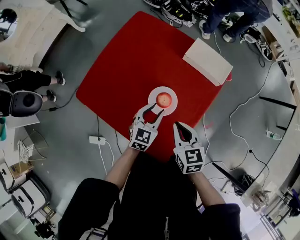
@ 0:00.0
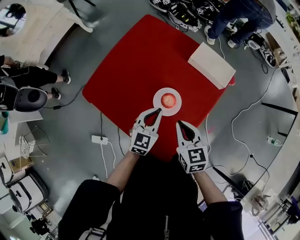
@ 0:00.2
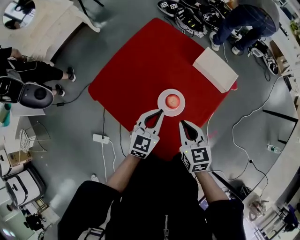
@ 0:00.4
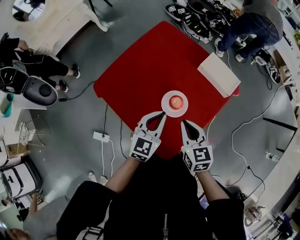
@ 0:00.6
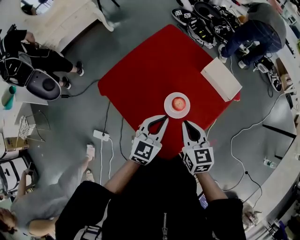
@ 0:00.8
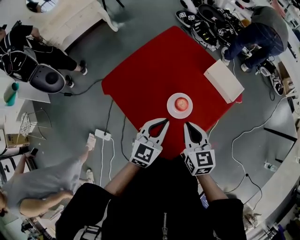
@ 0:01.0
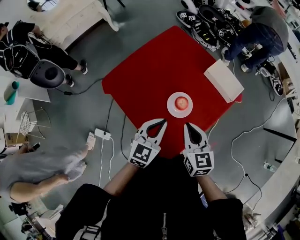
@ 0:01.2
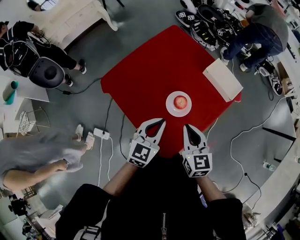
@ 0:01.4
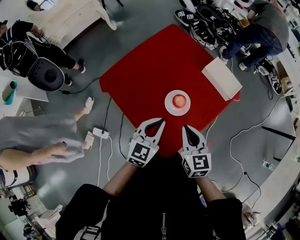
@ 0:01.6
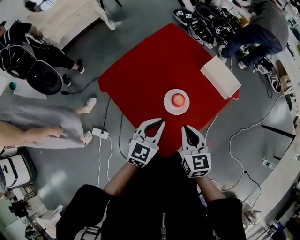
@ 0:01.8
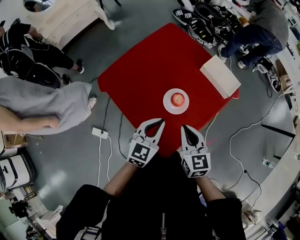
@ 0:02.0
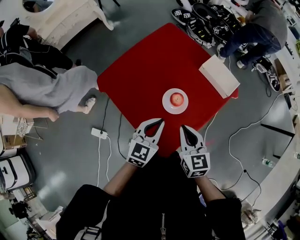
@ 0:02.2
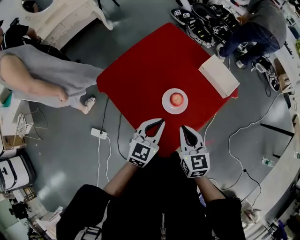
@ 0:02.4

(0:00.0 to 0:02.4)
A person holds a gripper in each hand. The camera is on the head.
0:00.0 - 0:01.2: The left gripper is displaced upward and backward by some 15 cm, and closes up. Meanwhile the right gripper goes some 10 cm upward.
0:01.2 - 0:02.4: There are only small adjustments of the grippers.

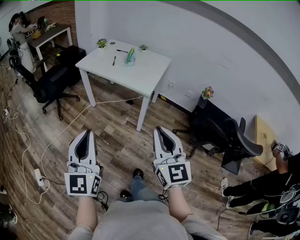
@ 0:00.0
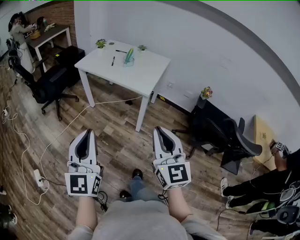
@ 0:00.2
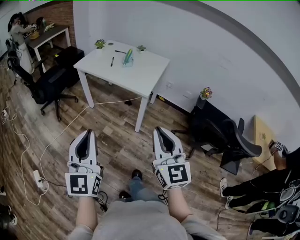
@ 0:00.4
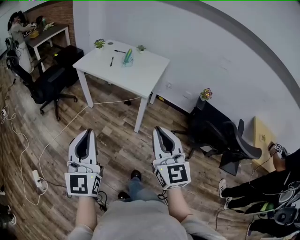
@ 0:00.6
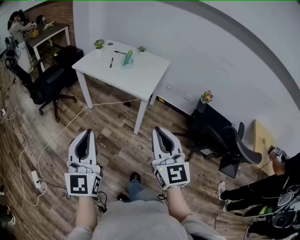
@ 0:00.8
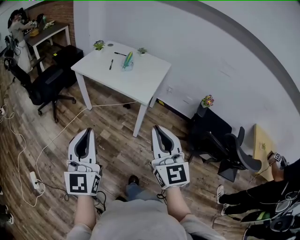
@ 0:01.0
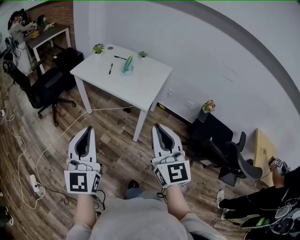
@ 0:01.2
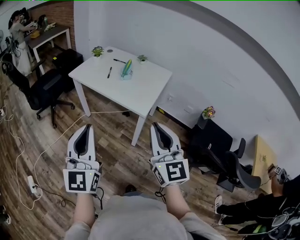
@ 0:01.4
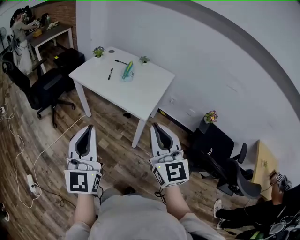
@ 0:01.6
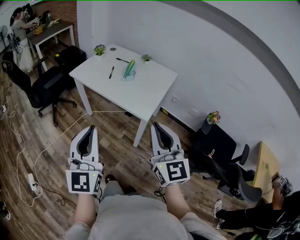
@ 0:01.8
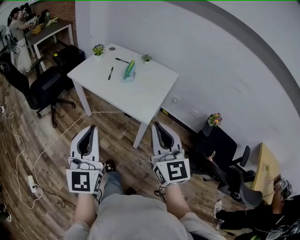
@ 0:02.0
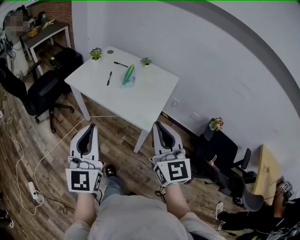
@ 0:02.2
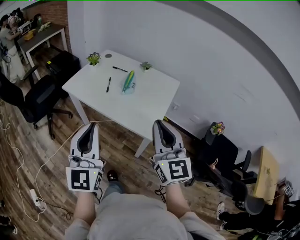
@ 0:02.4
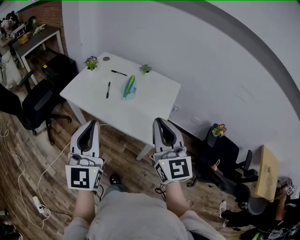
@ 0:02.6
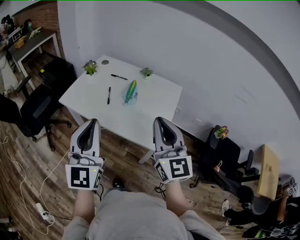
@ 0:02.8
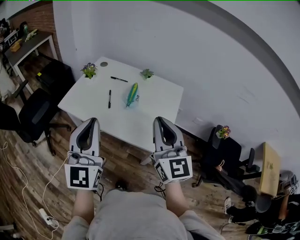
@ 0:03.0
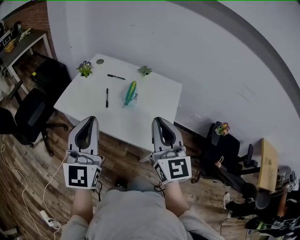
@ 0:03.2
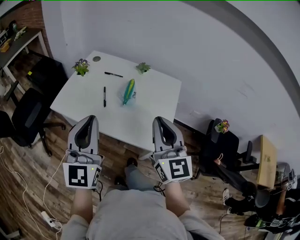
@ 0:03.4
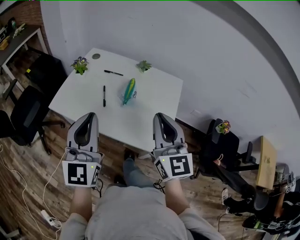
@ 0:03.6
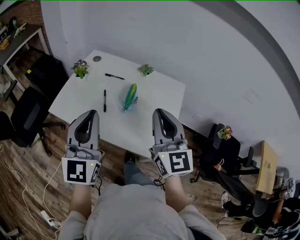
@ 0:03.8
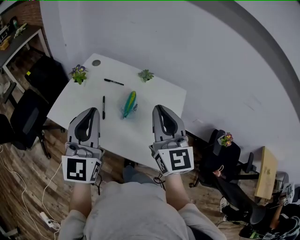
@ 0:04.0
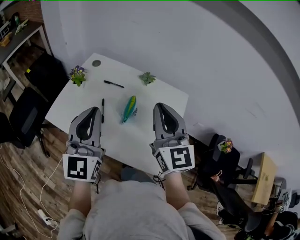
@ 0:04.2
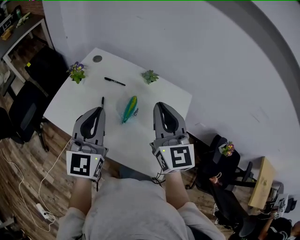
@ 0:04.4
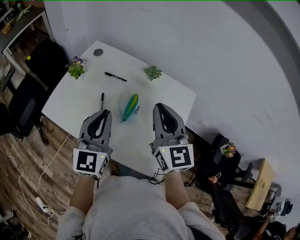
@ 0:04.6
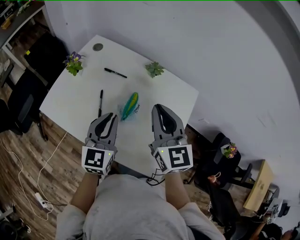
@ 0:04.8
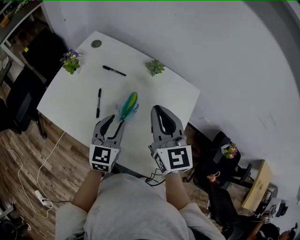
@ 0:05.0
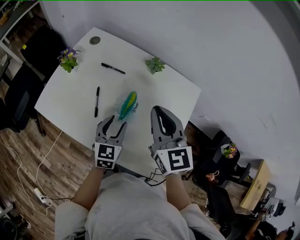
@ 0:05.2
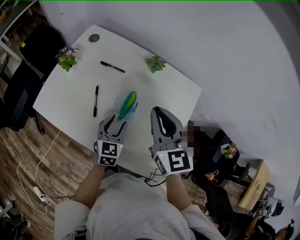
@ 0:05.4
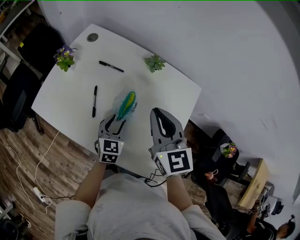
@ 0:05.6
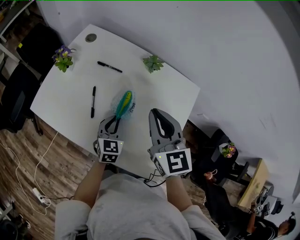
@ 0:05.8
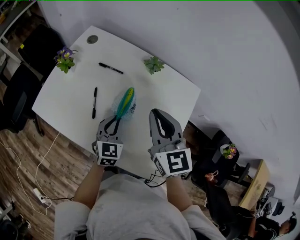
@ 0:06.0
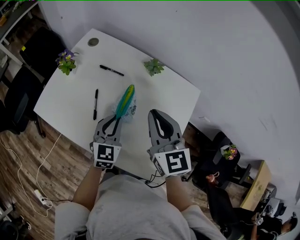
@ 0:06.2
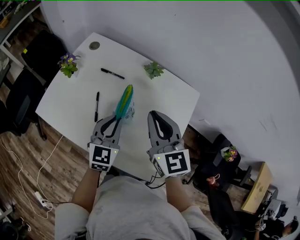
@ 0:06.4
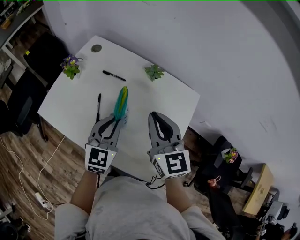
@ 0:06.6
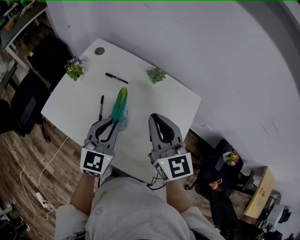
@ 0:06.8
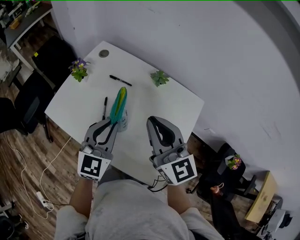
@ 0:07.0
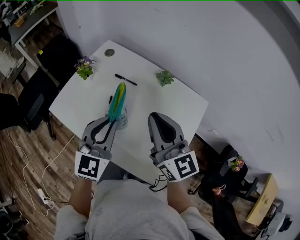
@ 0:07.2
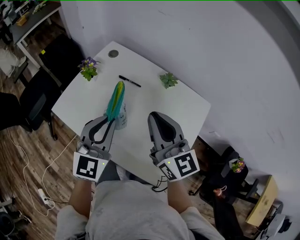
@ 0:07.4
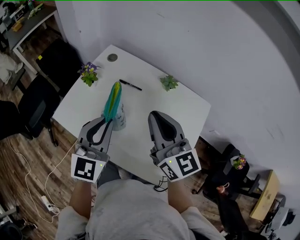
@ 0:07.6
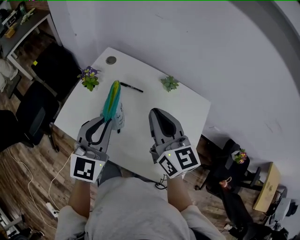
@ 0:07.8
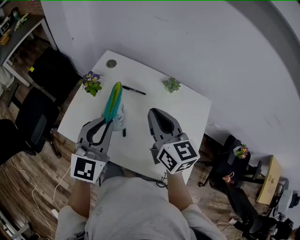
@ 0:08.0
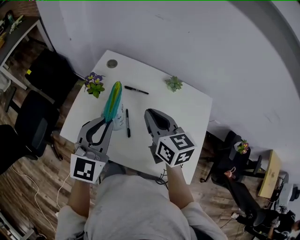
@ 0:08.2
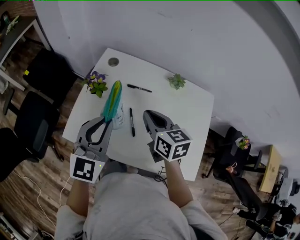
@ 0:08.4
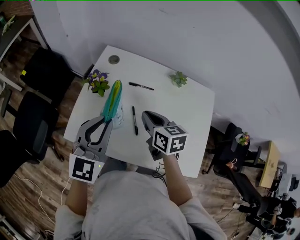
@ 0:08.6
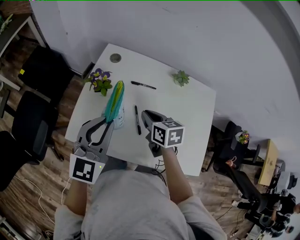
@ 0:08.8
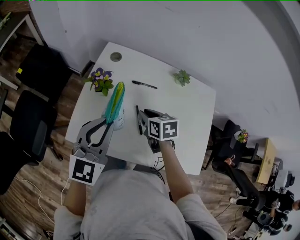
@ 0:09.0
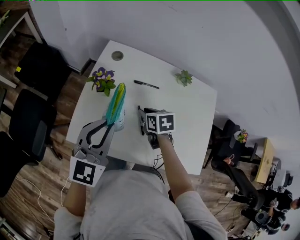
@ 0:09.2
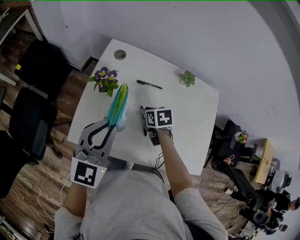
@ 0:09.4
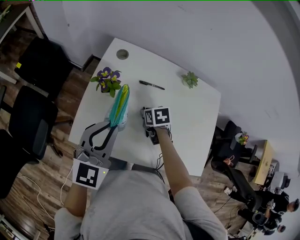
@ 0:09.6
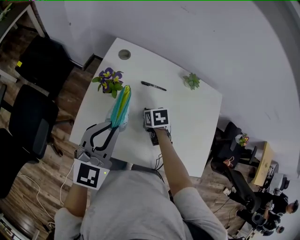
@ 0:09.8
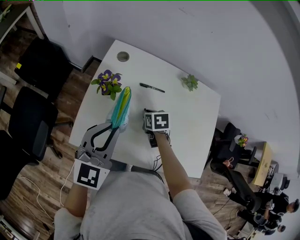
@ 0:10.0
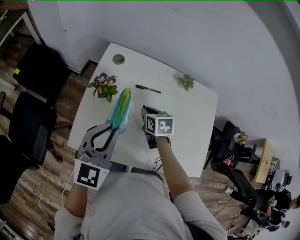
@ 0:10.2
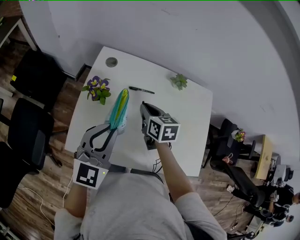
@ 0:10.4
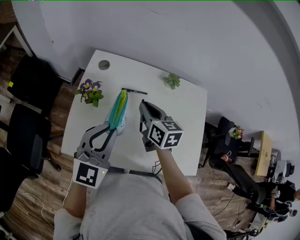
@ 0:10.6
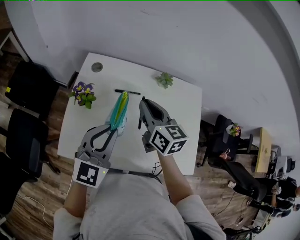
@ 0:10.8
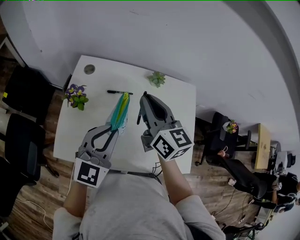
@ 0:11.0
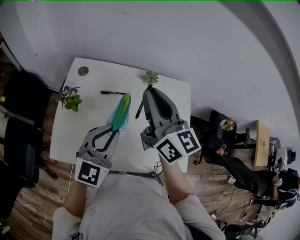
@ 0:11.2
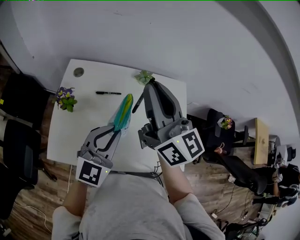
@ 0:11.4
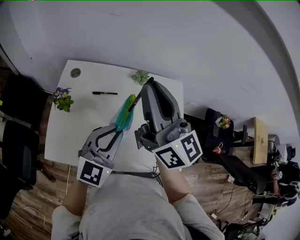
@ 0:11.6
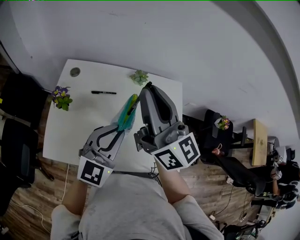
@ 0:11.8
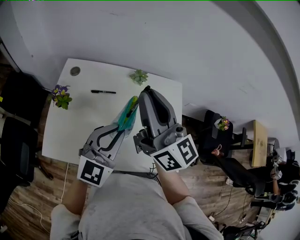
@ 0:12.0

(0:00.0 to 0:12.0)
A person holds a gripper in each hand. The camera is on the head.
0:00.0 - 0:01.6: The grippers both shift forward by some 20 cm.
0:01.6 - 0:03.0: The grippers both shift forward by approximately 30 cm.
0:03.0 - 0:04.4: The two grippers go approximately 25 cm forward.
0:04.4 - 0:06.0: The left gripper travels downward by approximately 25 cm, points its fingers about 30 degrees further downward, and opens, then closes again; the right gripper moves downward and forward, approximately 10 cm.
0:06.0 - 0:07.6: The left gripper goes approximately 25 cm upward and to the left, and rotates about 20 degrees. The right gripper travels to the left and upward by about 10 cm, and rotates approximately 20 degrees.
0:07.6 - 0:09.0: The right gripper heads downward and to the left, covering about 25 cm, and tilts its fingers approximately 50 degrees downward. Meanwhile the left gripper goes some 15 cm to the left.
0:09.0 - 0:10.4: The right gripper heads forward, covering approximately 5 cm, and goes downward and returns, approximately 10 cm each way.
0:10.4 - 0:12.0: The right gripper shifts roughly 30 cm upward and to the right, and points its fingers about 50 degrees further upward; the left gripper heads to the right, covering roughly 20 cm.

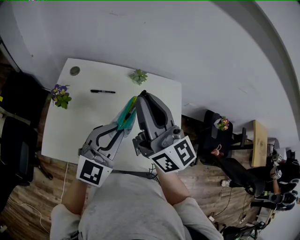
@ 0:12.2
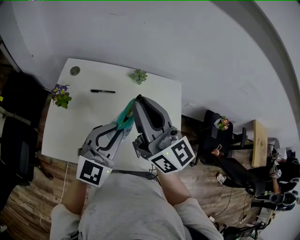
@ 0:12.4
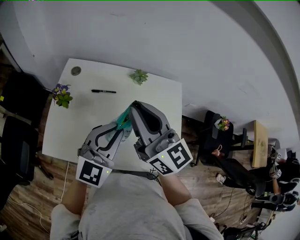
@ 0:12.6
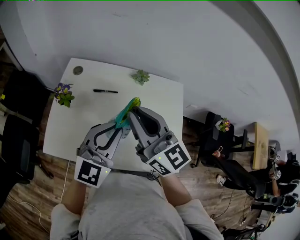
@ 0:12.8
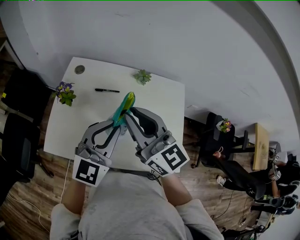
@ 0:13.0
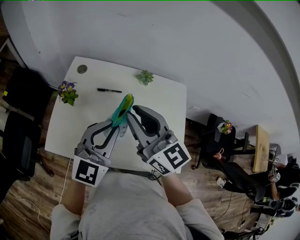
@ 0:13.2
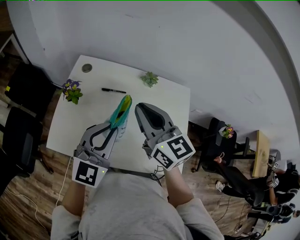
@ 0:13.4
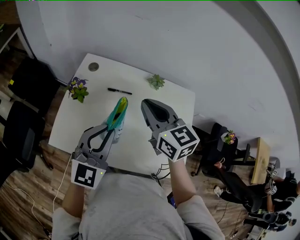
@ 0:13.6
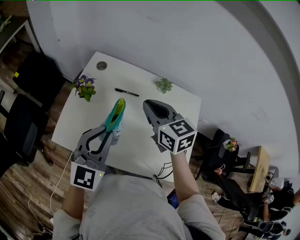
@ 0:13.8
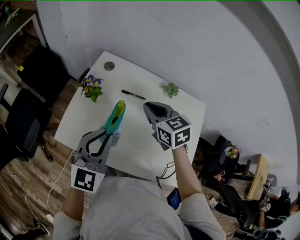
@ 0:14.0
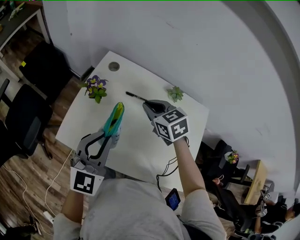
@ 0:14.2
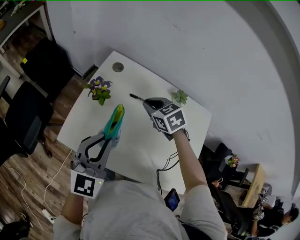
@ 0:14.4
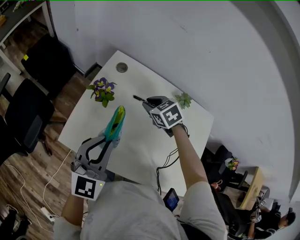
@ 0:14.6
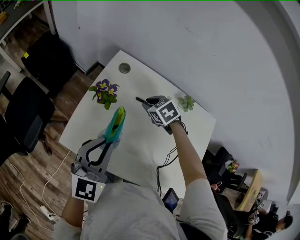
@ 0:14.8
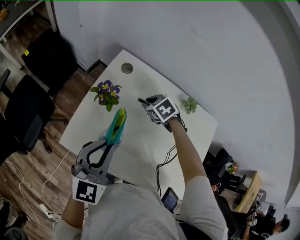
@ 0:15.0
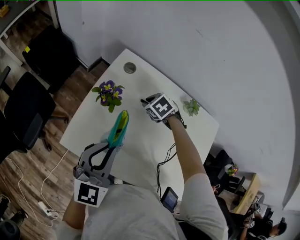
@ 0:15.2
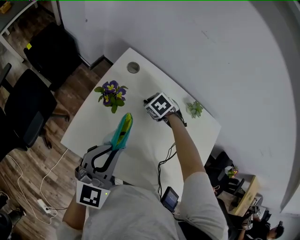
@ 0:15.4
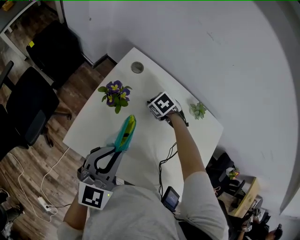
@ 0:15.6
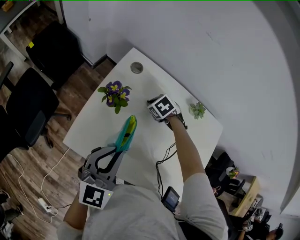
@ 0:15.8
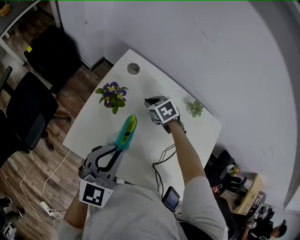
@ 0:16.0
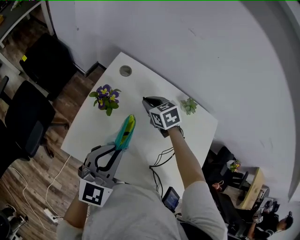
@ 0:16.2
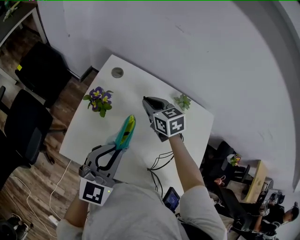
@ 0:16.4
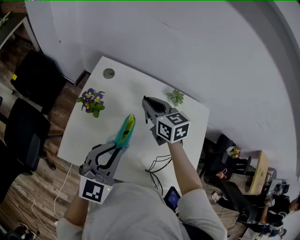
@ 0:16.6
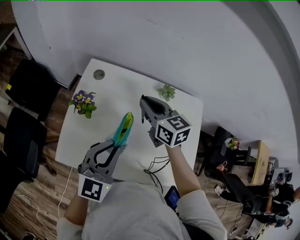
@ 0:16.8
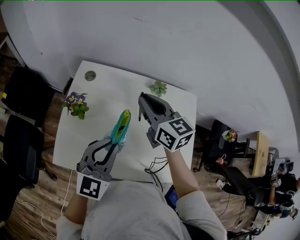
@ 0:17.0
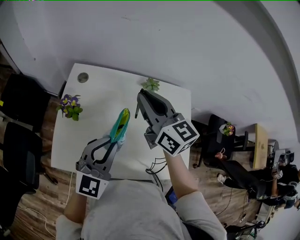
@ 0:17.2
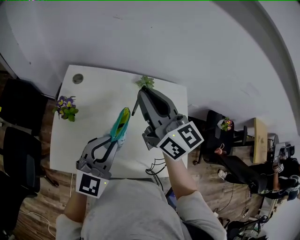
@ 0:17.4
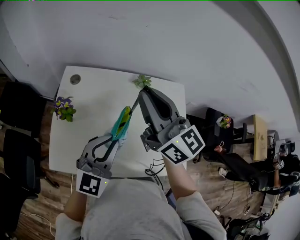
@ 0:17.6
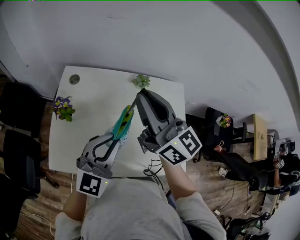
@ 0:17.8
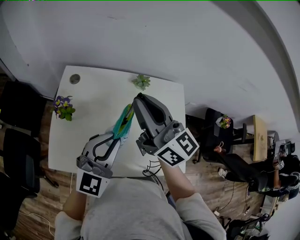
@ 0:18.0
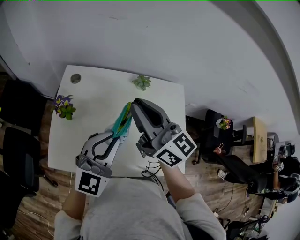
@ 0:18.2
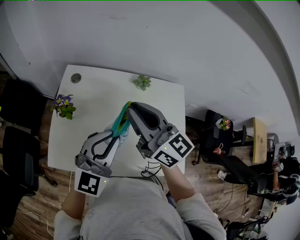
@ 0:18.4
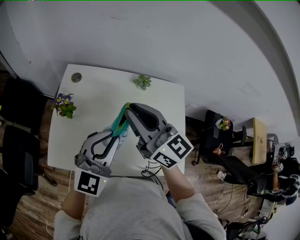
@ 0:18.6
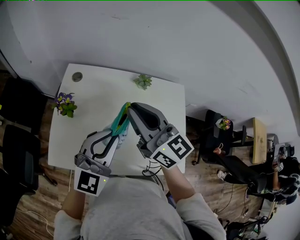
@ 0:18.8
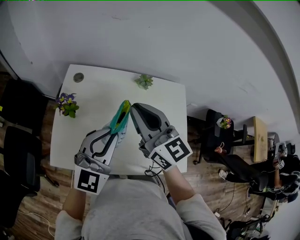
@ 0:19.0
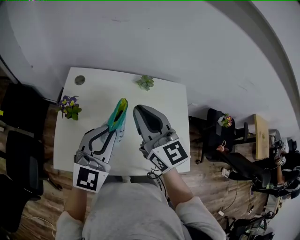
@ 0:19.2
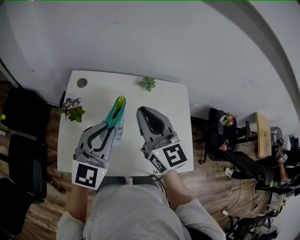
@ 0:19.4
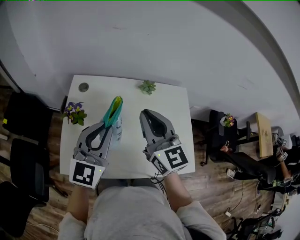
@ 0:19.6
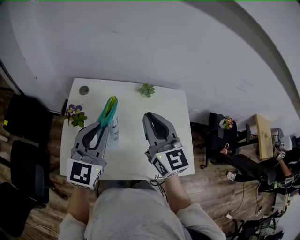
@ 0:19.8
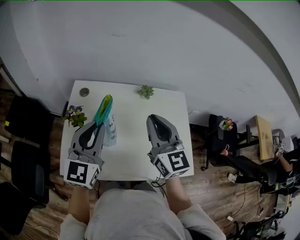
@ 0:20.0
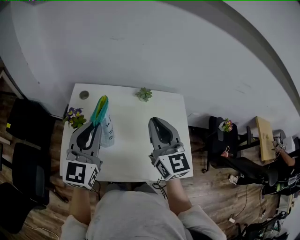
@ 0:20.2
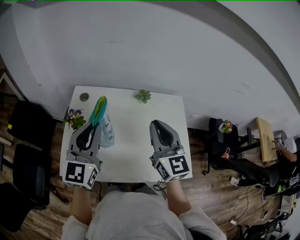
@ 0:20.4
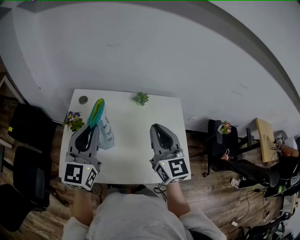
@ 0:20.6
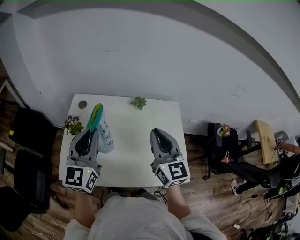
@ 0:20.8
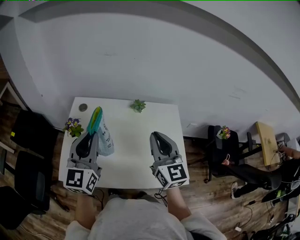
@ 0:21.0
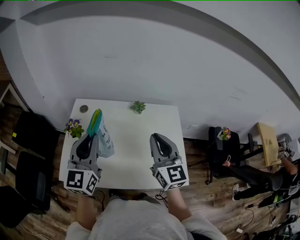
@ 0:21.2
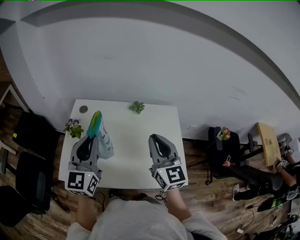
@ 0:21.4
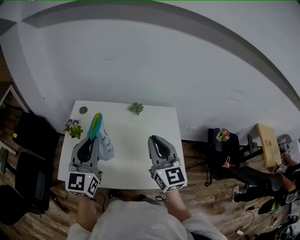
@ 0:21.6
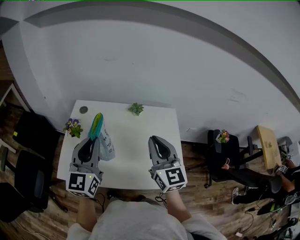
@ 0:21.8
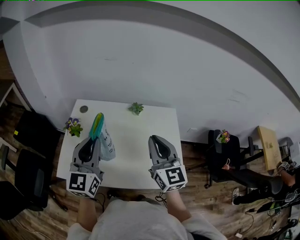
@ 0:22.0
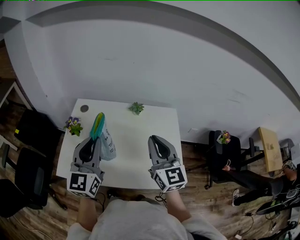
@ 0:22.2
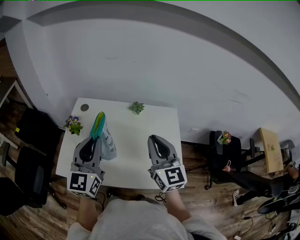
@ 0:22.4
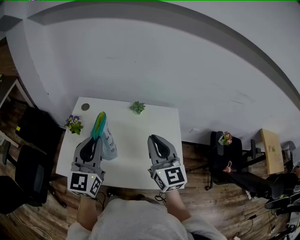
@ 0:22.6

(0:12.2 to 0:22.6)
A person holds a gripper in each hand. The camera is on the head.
0:12.2 - 0:13.6: The right gripper travels downward by some 10 cm, and points its fingers some 30 degrees further downward, while the left gripper is displaced to the left by roughly 10 cm.
0:13.6 - 0:15.2: The right gripper travels downward and forward by about 35 cm, and tilts its fingers approximately 50 degrees downward. Meanwhile the left gripper is displaced to the left, downward and forward by roughly 15 cm.
0:15.2 - 0:16.6: The right gripper heads upward, covering roughly 15 cm, and angles its fingers upward, by approximately 40 degrees; the left gripper ends up roughly 5 cm from where it was.
0:16.6 - 0:18.2: The right gripper moves upward, backward and to the right, some 25 cm, and points its fingers some 40 degrees further upward; the left gripper travels to the right by roughly 10 cm.
0:18.2 - 0:19.6: The right gripper swivels approximately 30 degrees. The left gripper travels to the left by roughly 10 cm.
0:19.6 - 0:21.2: The right gripper travels to the right and backward by roughly 15 cm, while the left gripper changes place by about 5 cm.
0:21.2 - 0:22.6: The left gripper shifts by approximately 5 cm.
